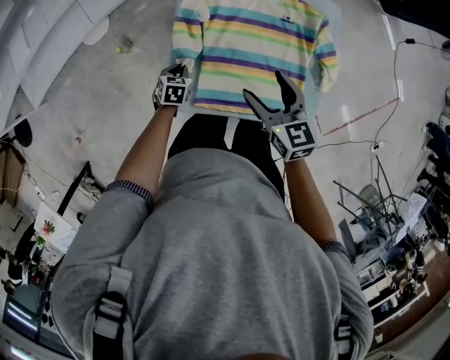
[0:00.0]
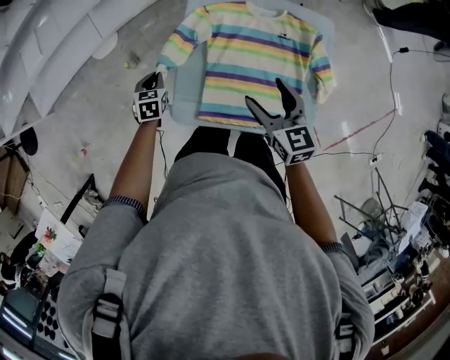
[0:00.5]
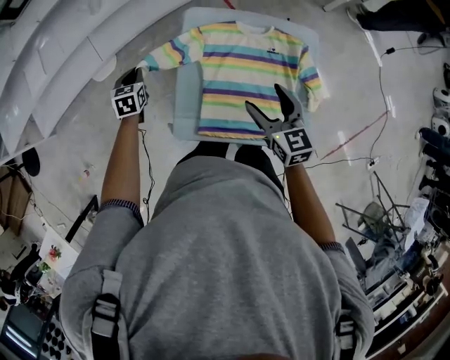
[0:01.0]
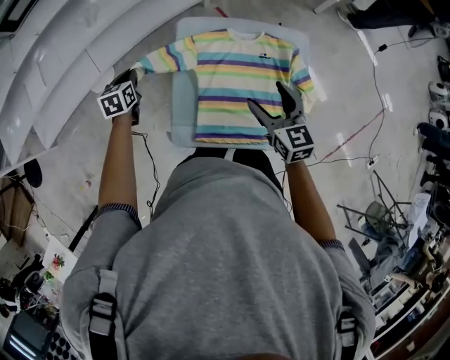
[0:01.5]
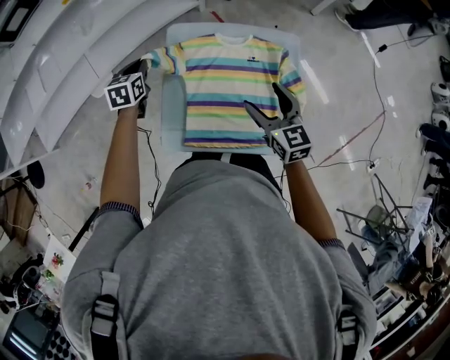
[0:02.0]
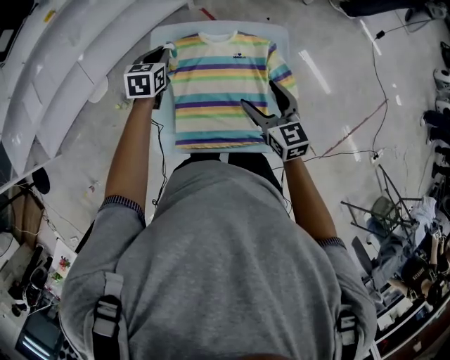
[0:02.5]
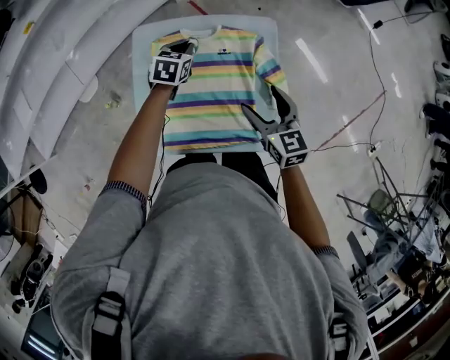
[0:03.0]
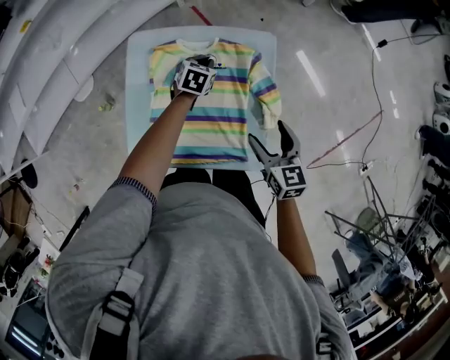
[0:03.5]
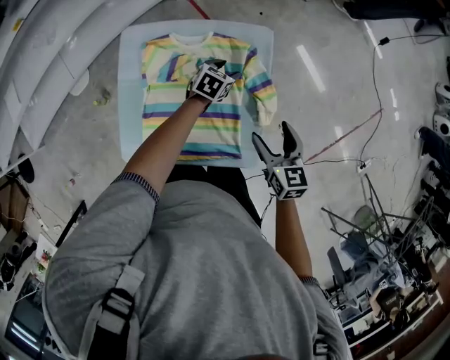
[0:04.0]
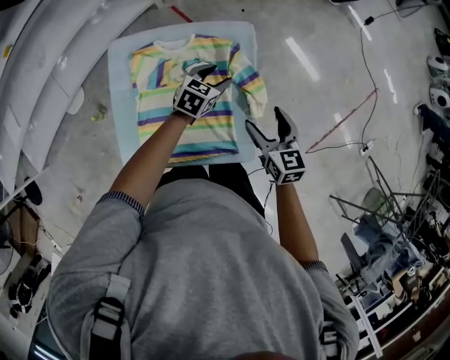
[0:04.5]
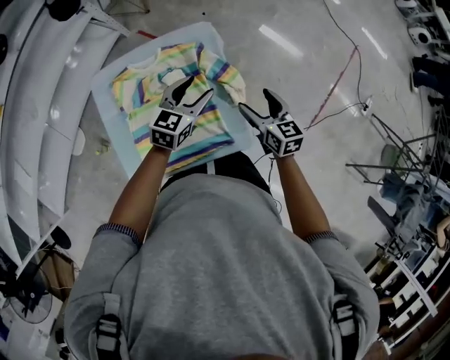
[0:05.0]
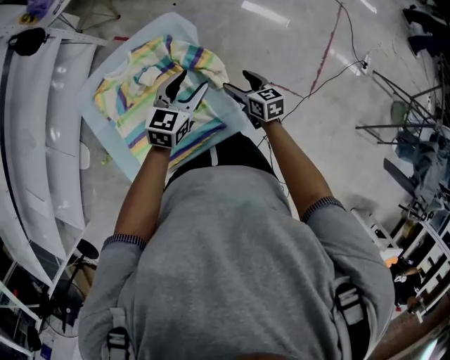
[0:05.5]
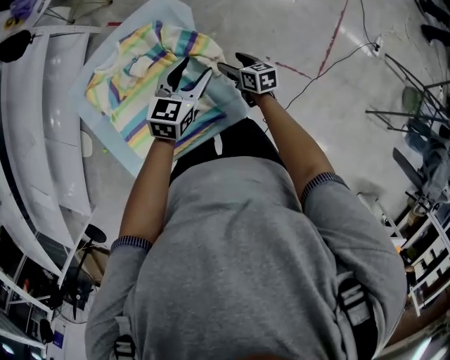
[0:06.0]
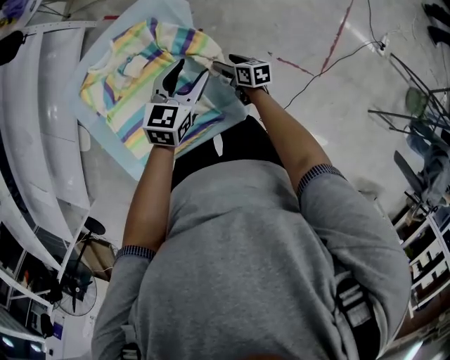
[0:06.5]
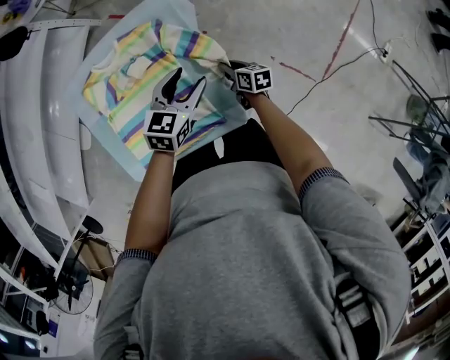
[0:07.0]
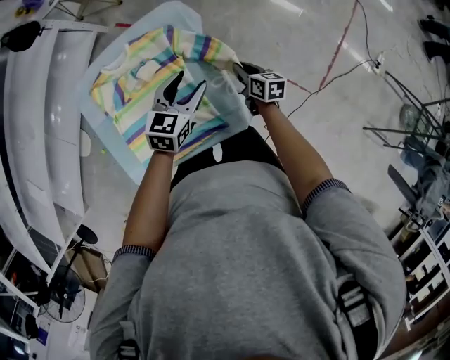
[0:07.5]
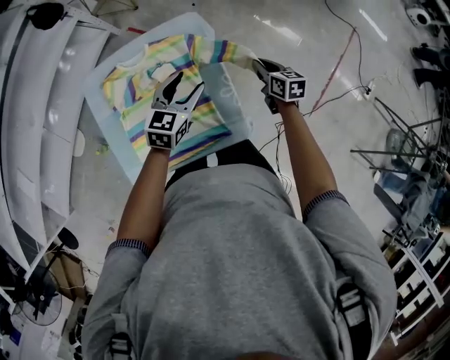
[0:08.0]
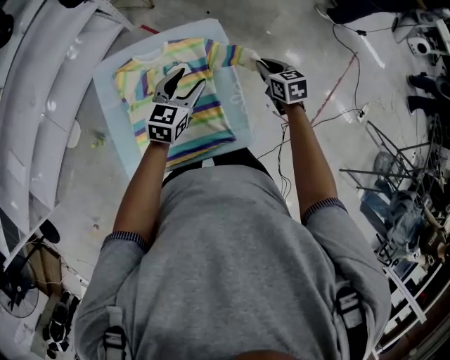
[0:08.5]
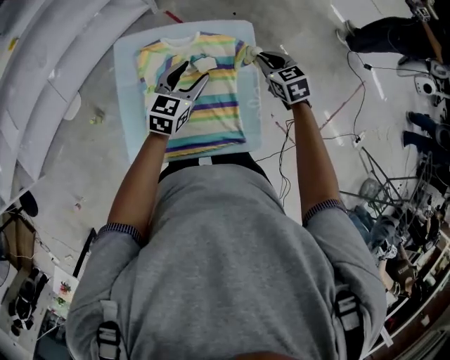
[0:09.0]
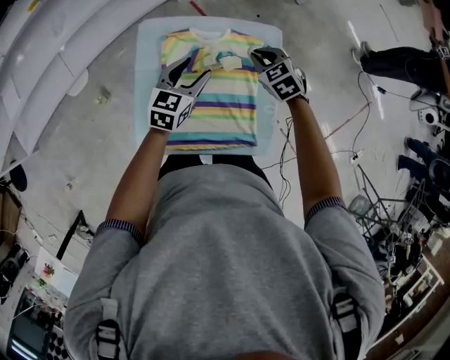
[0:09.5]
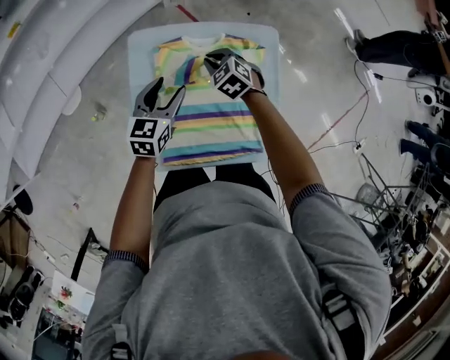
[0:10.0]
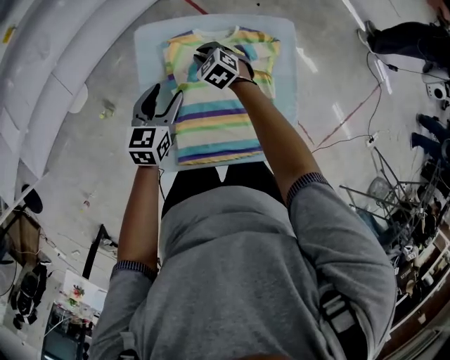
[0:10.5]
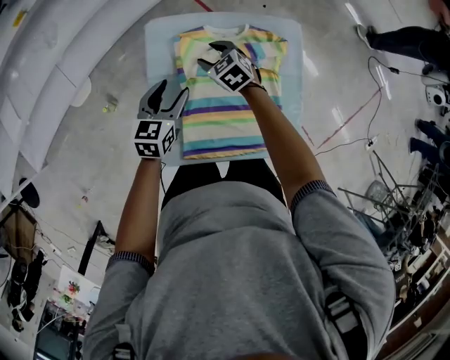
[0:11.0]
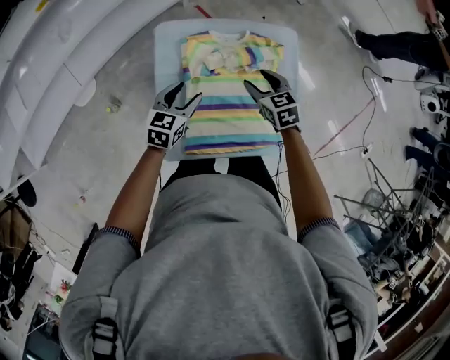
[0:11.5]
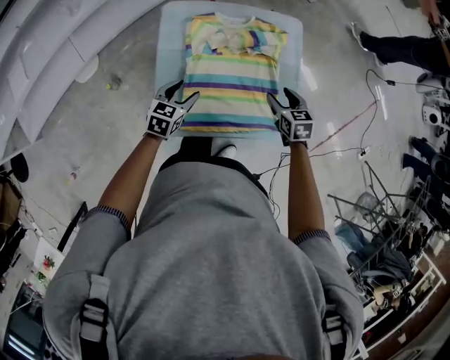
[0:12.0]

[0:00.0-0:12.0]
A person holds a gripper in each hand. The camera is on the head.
0:00.0 to 0:02.0: The right gripper moves to the right and upward, approximately 10 cm. Meanwhile the left gripper goes some 30 cm upward and forward, and changes its angle by roughly 20 degrees.
0:02.0 to 0:04.0: The right gripper travels to the right and downward by roughly 20 cm; the left gripper shifts some 50 cm to the right, rotates approximately 40 degrees, and opens.
0:04.0 to 0:06.0: The right gripper shifts approximately 25 cm downward and to the right, and rotates approximately 30 degrees. The left gripper moves to the right, upward and backward, some 25 cm, and changes its angle by about 30 degrees.
0:06.0 to 0:08.0: The right gripper heads upward and forward, covering about 15 cm, and closes. The left gripper heads to the left, covering some 10 cm.
0:08.0 to 0:10.0: Both grippers travel together to the left, about 35 cm. The right gripper twists roughly 60 degrees counterclockwise, seen from behind; the left gripper swivels about 20 degrees.
0:10.0 to 0:12.0: The right gripper moves backward and to the right, roughly 25 cm, swivels about 40 degrees, and opens its fingers; the left gripper goes about 15 cm backward and downward.

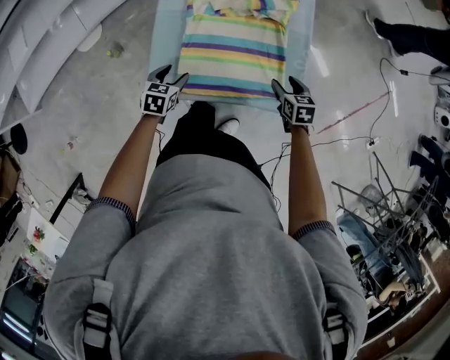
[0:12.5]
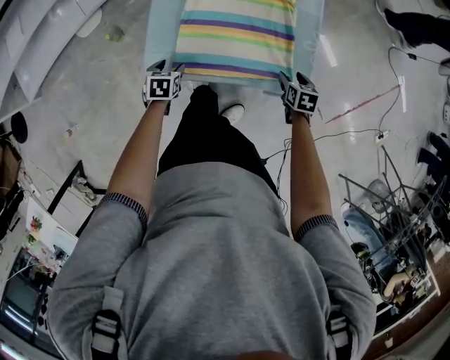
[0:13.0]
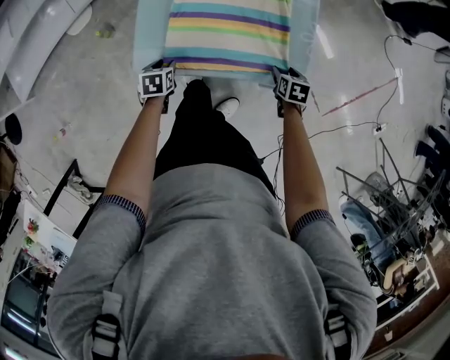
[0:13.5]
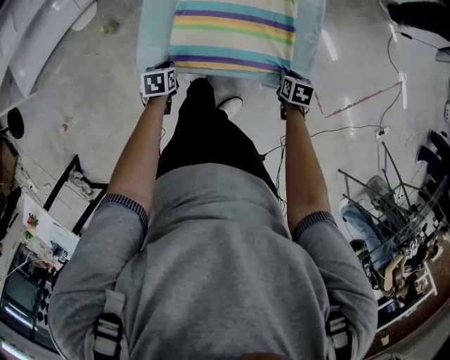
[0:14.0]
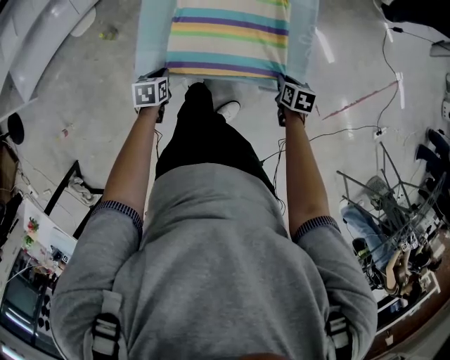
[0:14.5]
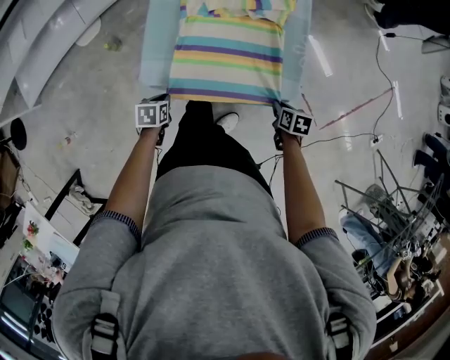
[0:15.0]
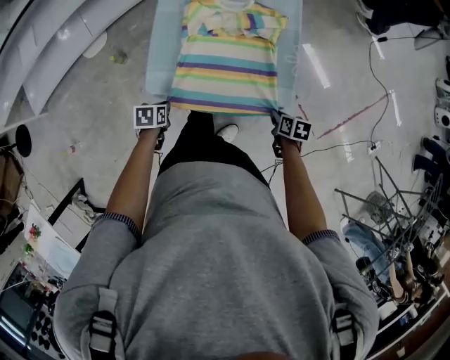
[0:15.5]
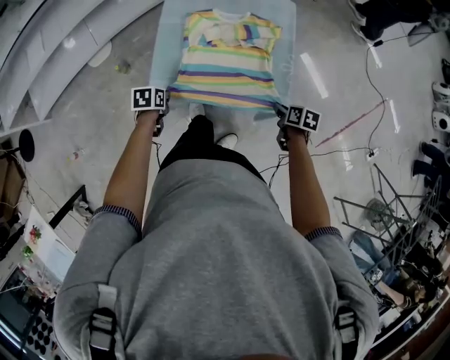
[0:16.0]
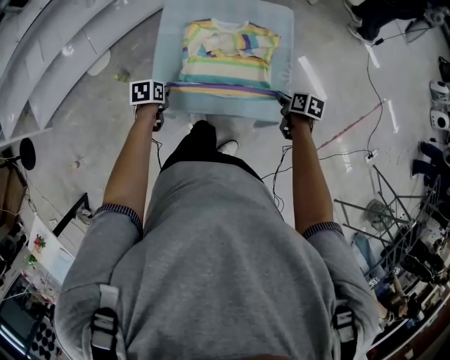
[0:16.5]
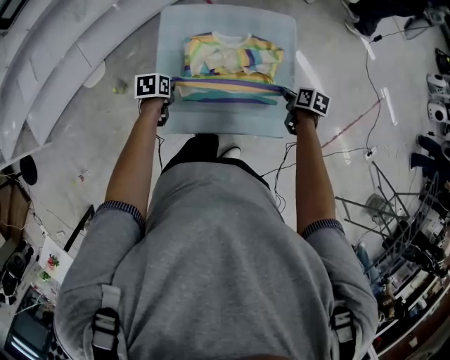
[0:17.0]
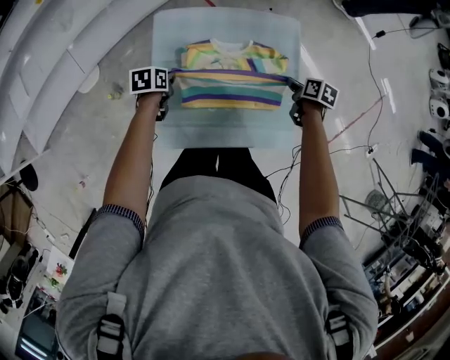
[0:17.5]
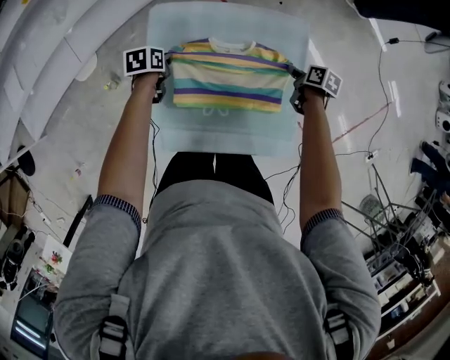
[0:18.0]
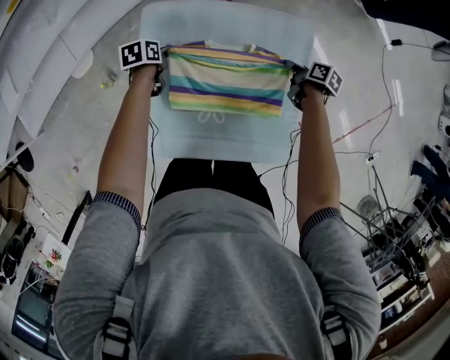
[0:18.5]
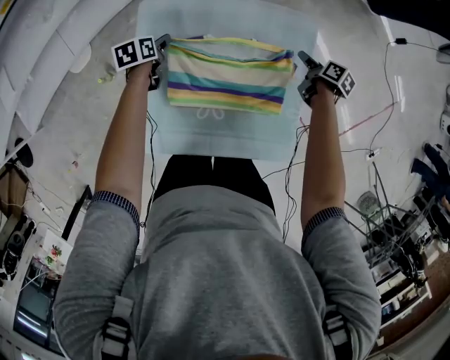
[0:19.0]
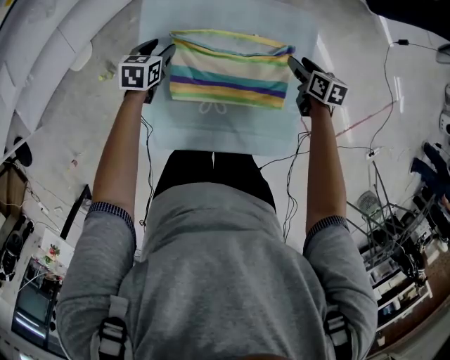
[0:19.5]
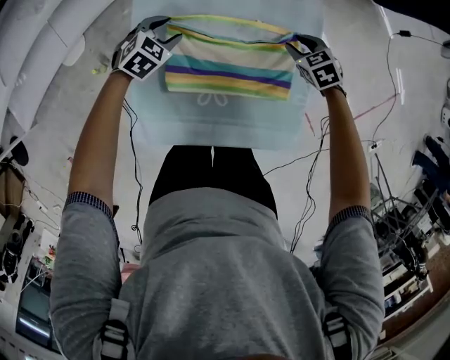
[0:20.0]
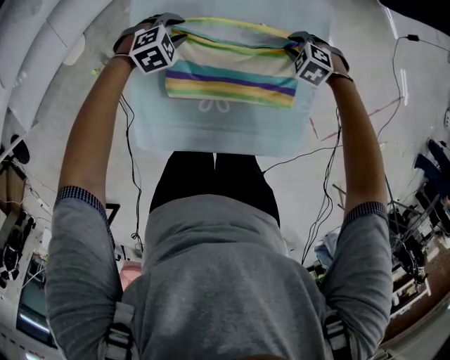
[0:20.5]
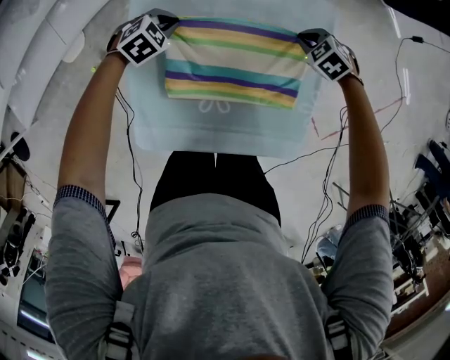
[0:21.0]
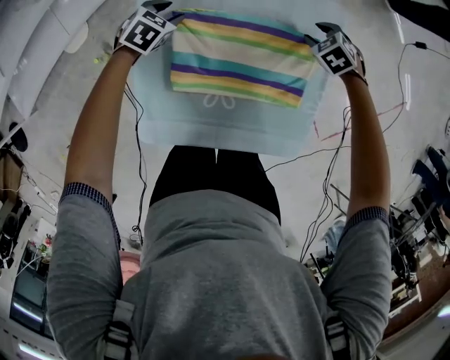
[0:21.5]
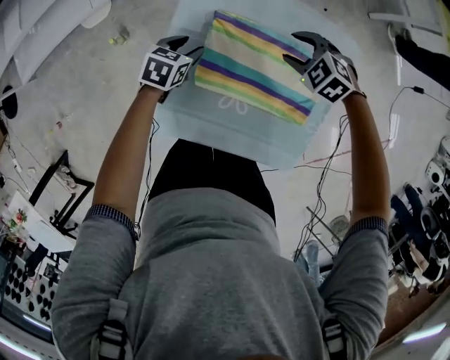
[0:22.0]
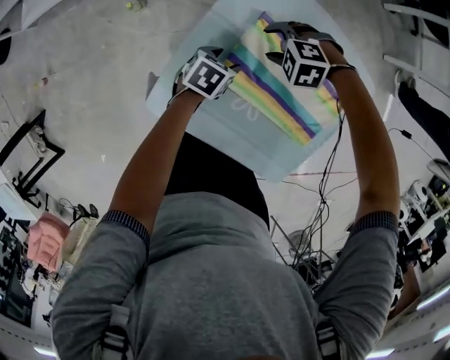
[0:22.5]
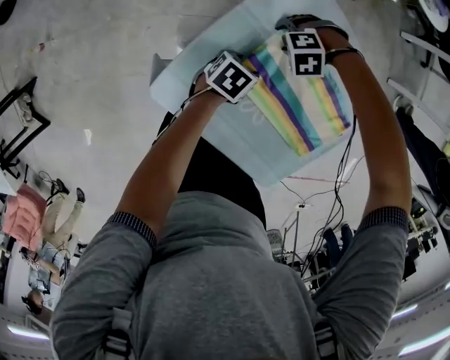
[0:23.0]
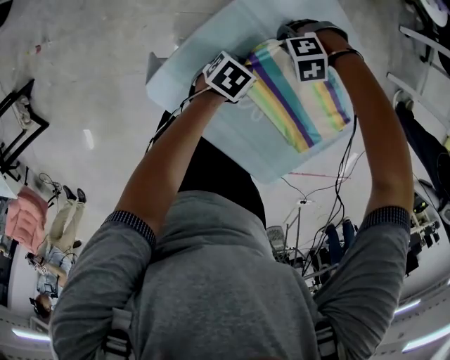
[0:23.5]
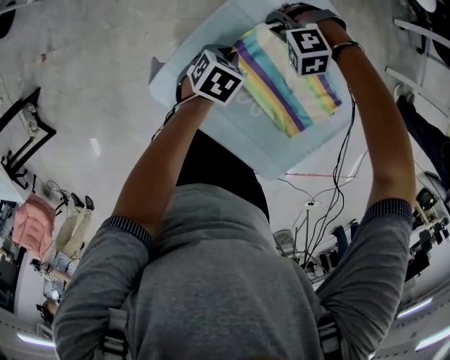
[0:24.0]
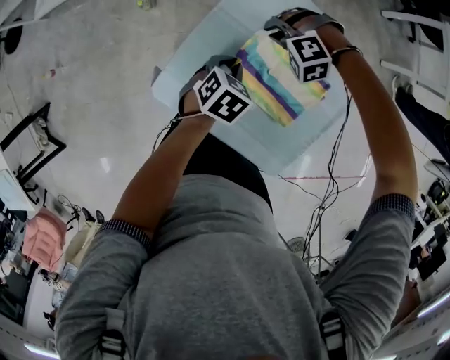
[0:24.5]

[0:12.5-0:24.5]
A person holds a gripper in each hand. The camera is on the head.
0:12.5 to 0:14.5: The two grippers go approximately 10 cm backward and downward. The left gripper rotates approximately 20 degrees, and closes, while the right gripper closes its fingers.
0:14.5 to 0:16.5: The two grippers go some 15 cm upward and forward.
0:16.5 to 0:18.5: Both grippers move forward, roughly 30 cm.
0:18.5 to 0:20.5: The left gripper ends up approximately 10 cm from where it was, rotates around the line of its fingers by roughly 90 degrees, clockwise from behind, and opens. Meanwhile the right gripper travels upward and back again, approximately 5 cm each way, and rolls counterclockwise, seen from behind, by roughly 110 degrees.
0:20.5 to 0:22.5: The left gripper ends up about 15 cm from where it was, twists some 80 degrees counterclockwise, seen from behind, and closes and opens again; the right gripper moves roughly 30 cm, and twists about 50 degrees counterclockwise, seen from behind.
0:22.5 to 0:24.5: The right gripper moves upward, about 5 cm, turns by approximately 30 degrees, and closes. The left gripper goes approximately 10 cm upward, and closes.

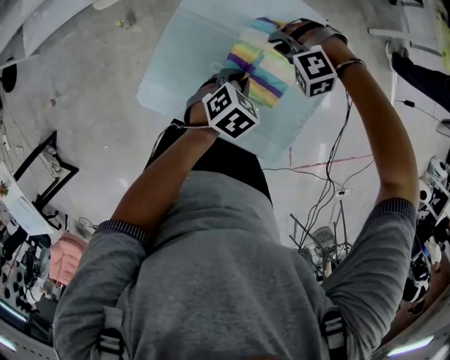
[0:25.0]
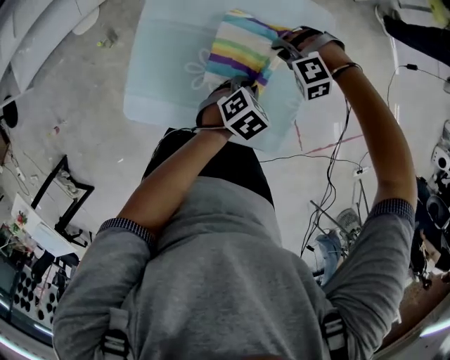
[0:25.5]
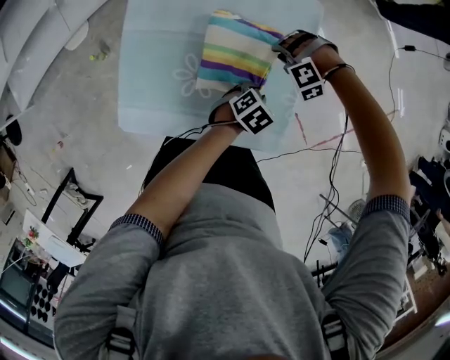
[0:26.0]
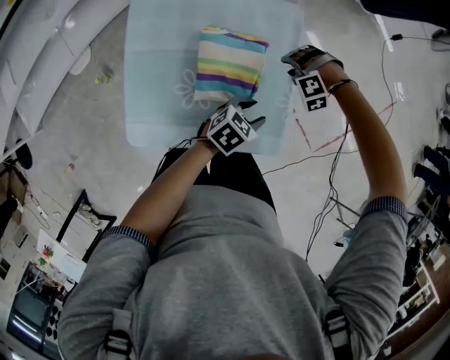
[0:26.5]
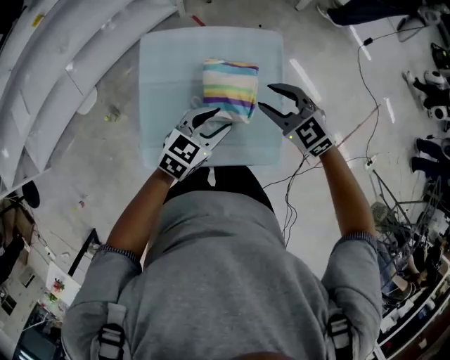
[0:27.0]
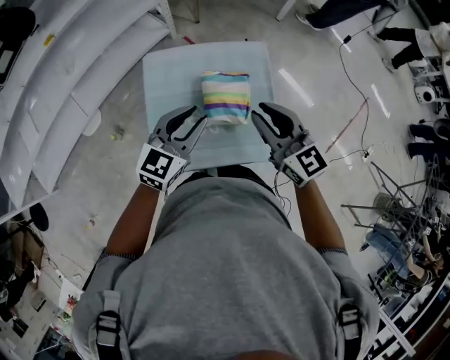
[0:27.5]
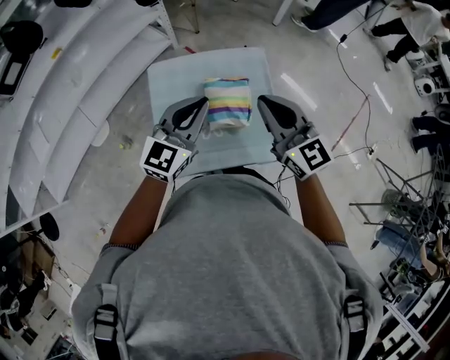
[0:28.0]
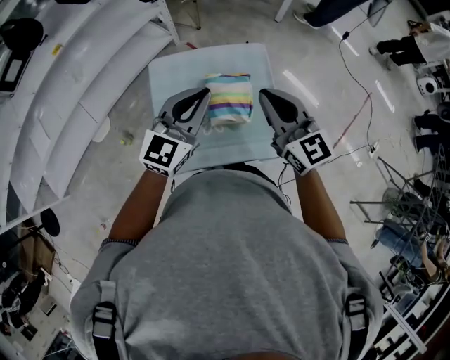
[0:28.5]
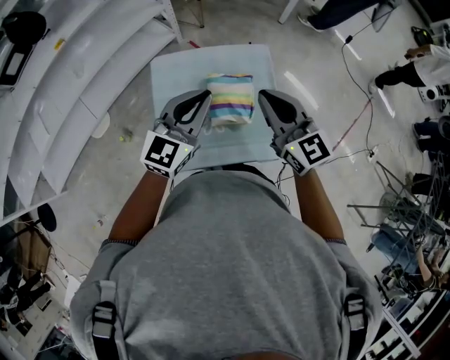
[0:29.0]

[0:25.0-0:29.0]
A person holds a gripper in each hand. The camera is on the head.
0:25.0 to 0:27.0: The right gripper changes place by roughly 20 cm, rotates around the line of its fingers by some 80 degrees, clockwise from behind, and opens its fingers, while the left gripper travels upward by some 15 cm, turns by about 40 degrees, and opens up.
0:27.0 to 0:29.0: The grippers both shift upward by some 20 cm. The right gripper turns by approximately 40 degrees, and closes its fingers; the left gripper turns by roughly 30 degrees, and closes.
